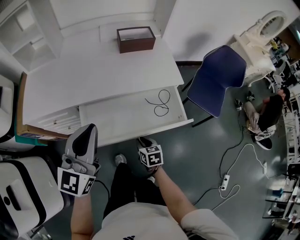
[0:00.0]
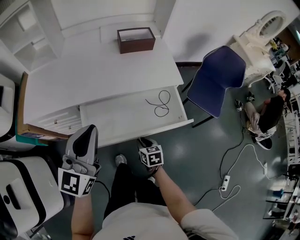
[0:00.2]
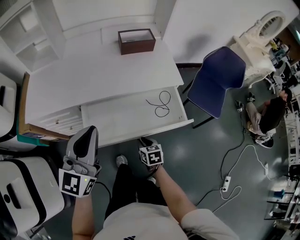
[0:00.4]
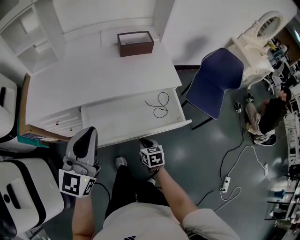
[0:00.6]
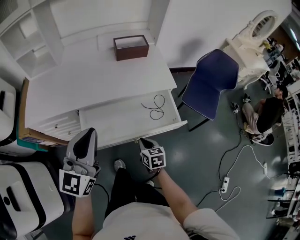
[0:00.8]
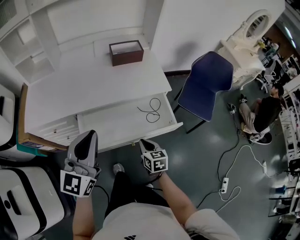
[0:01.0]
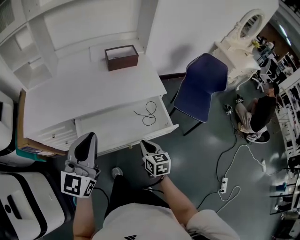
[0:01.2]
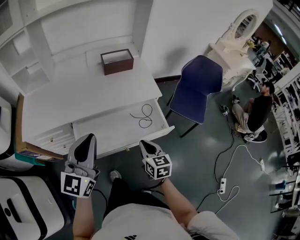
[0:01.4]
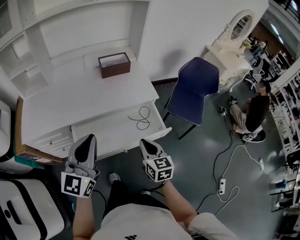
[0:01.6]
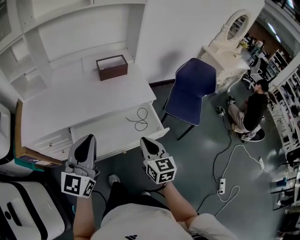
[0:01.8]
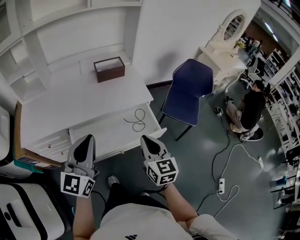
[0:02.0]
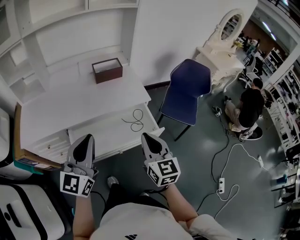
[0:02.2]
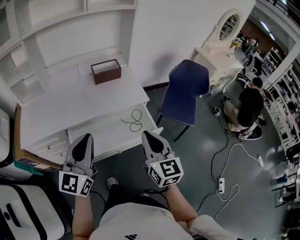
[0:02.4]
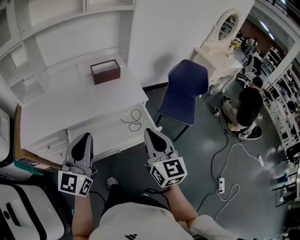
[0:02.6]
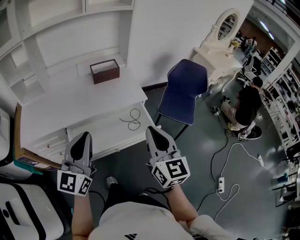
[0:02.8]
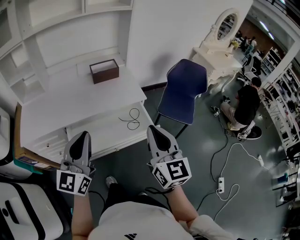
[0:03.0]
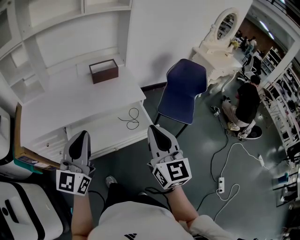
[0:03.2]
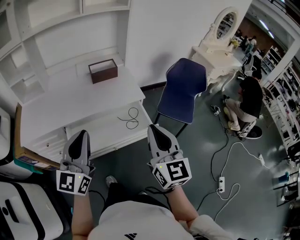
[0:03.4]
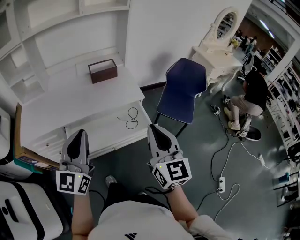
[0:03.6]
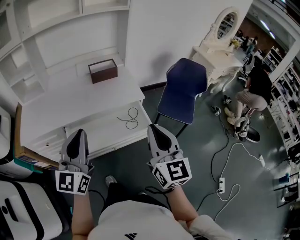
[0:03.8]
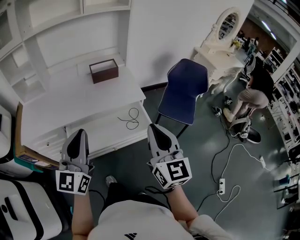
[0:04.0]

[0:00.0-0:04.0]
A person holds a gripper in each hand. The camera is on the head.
0:00.0 to 0:01.4: The right gripper is displaced upward by some 15 cm, and rotates some 20 degrees.
0:01.4 to 0:02.6: The left gripper ends up some 5 cm from where it was; the right gripper moves upward, roughly 20 cm, and swivels approximately 30 degrees.
0:02.6 to 0:04.0: The right gripper shifts by approximately 5 cm.

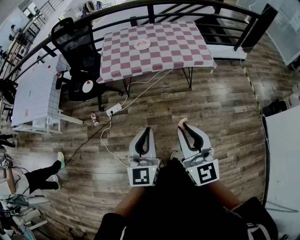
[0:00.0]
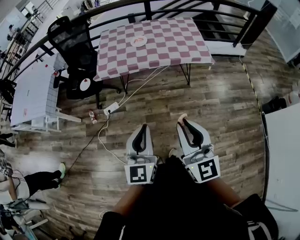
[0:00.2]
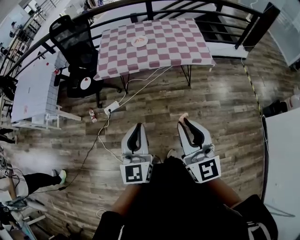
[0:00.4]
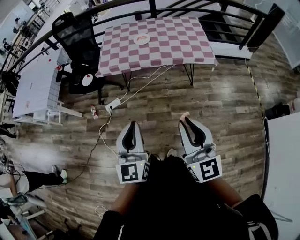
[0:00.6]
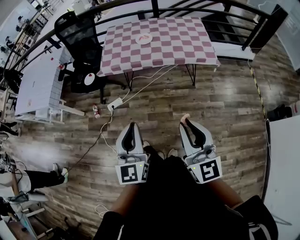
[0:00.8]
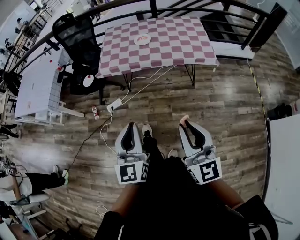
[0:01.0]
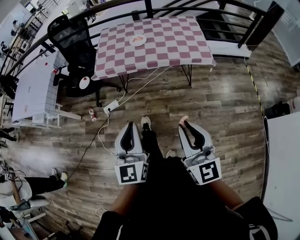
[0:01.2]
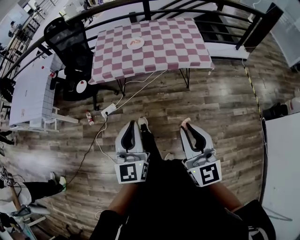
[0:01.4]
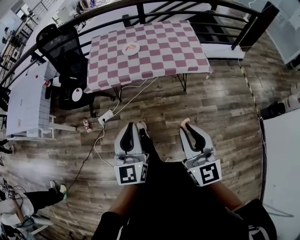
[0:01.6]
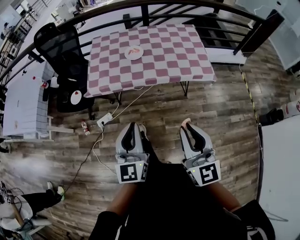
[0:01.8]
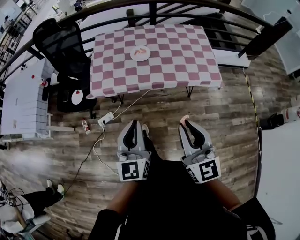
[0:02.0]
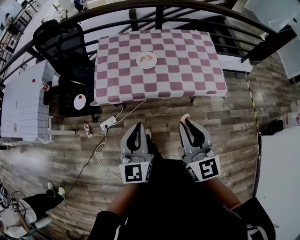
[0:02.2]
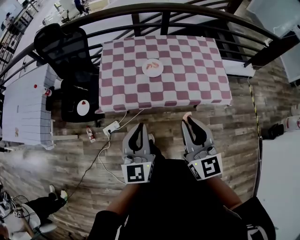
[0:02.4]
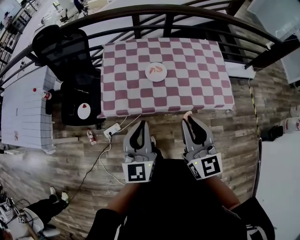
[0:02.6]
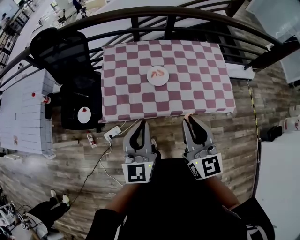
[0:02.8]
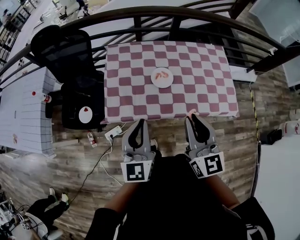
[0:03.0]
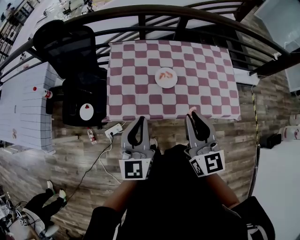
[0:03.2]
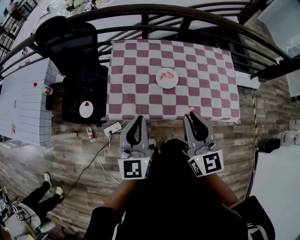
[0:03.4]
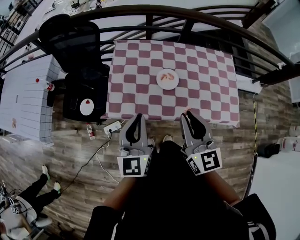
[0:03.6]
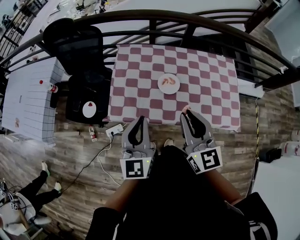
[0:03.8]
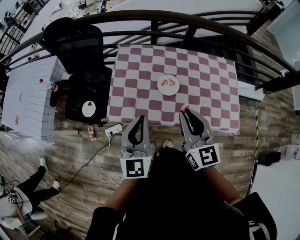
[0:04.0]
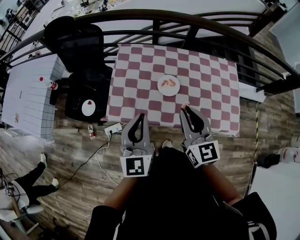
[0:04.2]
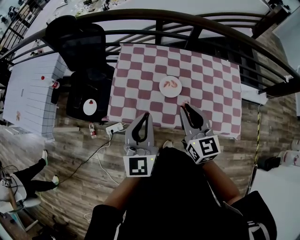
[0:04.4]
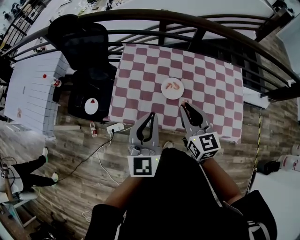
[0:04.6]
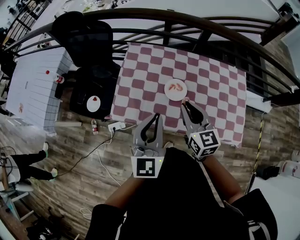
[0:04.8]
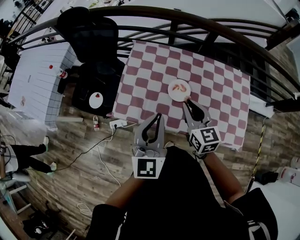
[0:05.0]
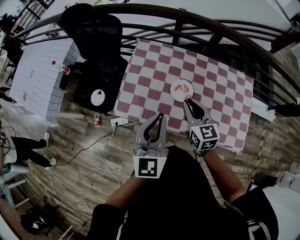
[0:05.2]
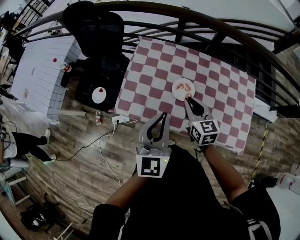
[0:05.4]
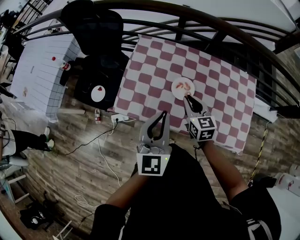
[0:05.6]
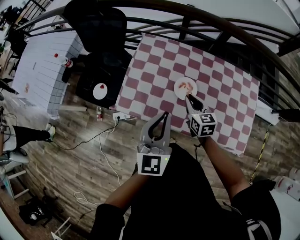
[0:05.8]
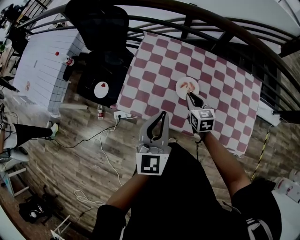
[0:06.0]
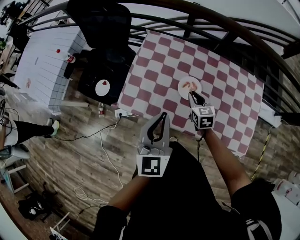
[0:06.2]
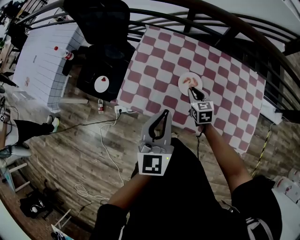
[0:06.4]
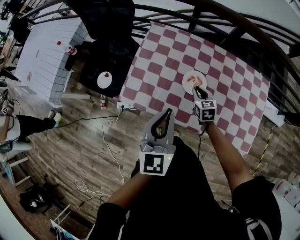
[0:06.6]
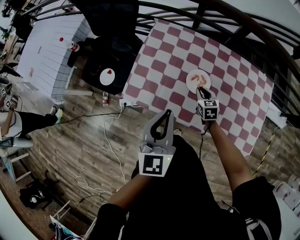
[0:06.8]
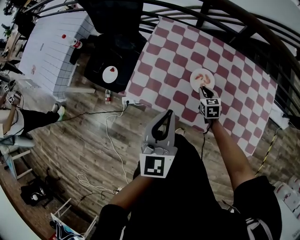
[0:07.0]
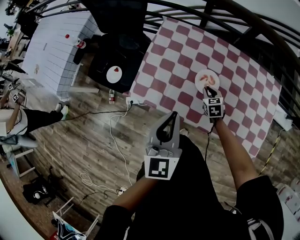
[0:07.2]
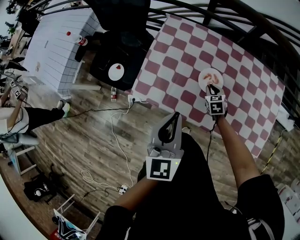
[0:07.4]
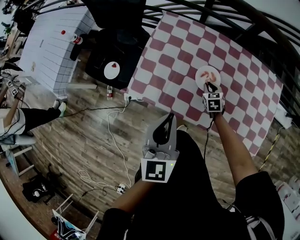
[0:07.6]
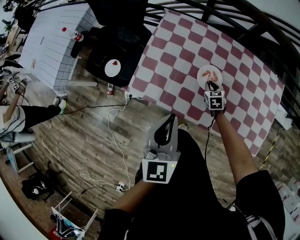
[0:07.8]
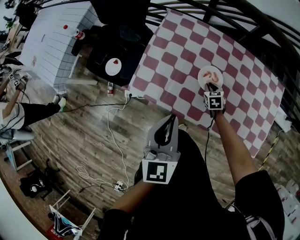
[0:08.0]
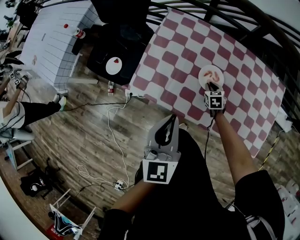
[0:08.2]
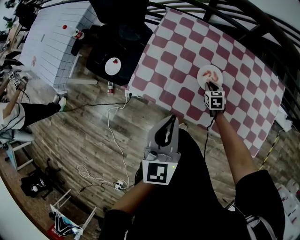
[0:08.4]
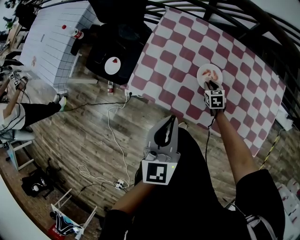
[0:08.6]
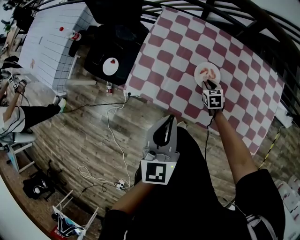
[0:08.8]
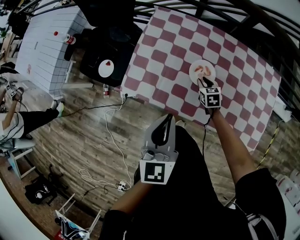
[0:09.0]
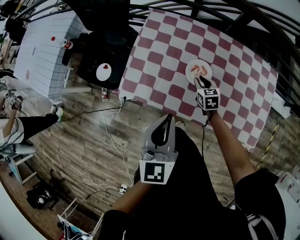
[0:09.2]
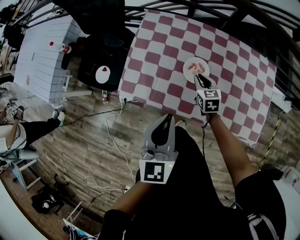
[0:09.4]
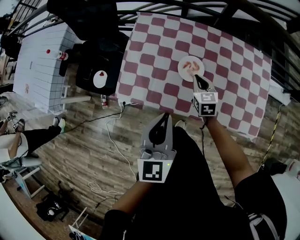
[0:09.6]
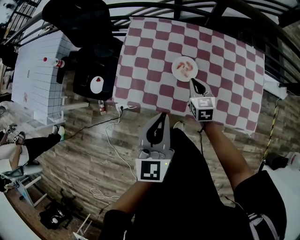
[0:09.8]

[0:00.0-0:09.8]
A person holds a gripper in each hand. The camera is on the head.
0:00.0 to 0:01.4: The right gripper is displaced to the right and forward by approximately 10 cm; the left gripper travels forward by approximately 10 cm.
0:01.4 to 0:02.8: The pair of grippers is taken forward, some 50 cm.
0:02.8 to 0:04.2: The left gripper heads forward, covering about 10 cm; the right gripper heads forward, covering approximately 10 cm.
0:04.2 to 0:05.6: The left gripper shifts some 5 cm to the right; the right gripper is displaced downward and forward by about 20 cm, and rotates about 20 degrees.
0:05.6 to 0:07.0: The right gripper shifts some 20 cm downward, and changes its angle by approximately 20 degrees; the left gripper ends up roughly 5 cm from where it was.
0:07.0 to 0:08.4: The right gripper moves downward, some 5 cm.
0:08.4 to 0:09.8: The right gripper goes approximately 15 cm upward, and swivels some 20 degrees, while the left gripper ends up approximately 5 cm from where it was.

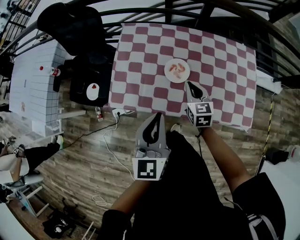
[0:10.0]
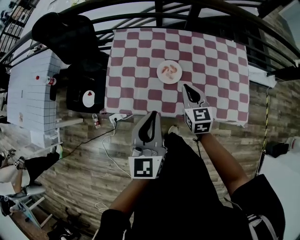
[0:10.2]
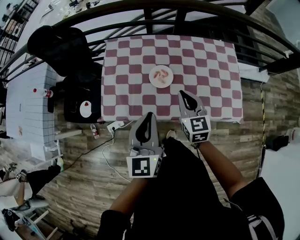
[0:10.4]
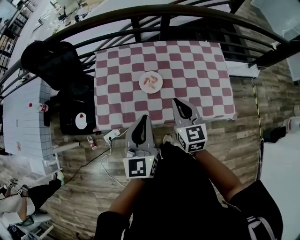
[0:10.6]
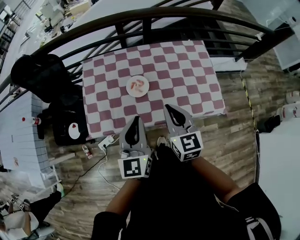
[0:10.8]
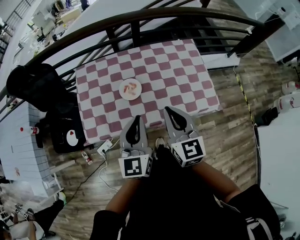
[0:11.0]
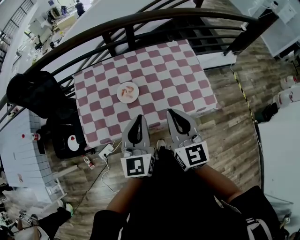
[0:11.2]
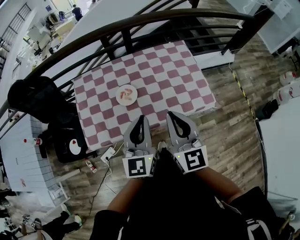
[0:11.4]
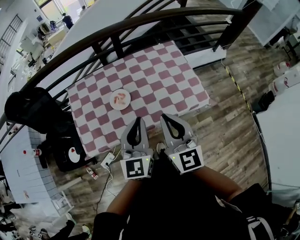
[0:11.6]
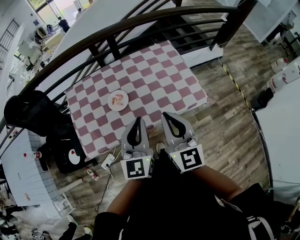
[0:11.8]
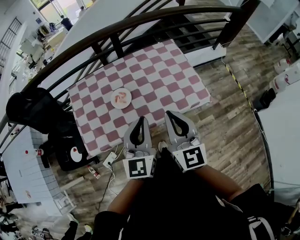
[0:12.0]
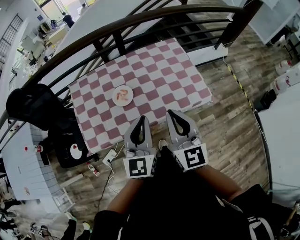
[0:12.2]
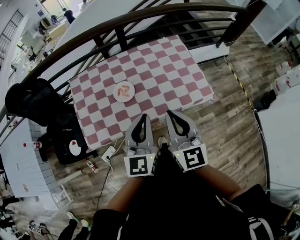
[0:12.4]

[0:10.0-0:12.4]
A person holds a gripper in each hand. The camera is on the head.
0:10.0 to 0:11.2: The right gripper moves upward, backward and to the right, some 30 cm, and rotates approximately 30 degrees. The left gripper shifts some 10 cm to the right, and rotates roughly 20 degrees.
0:11.2 to 0:12.4: The grippers make only small movements.

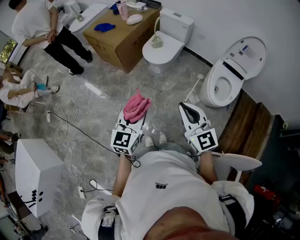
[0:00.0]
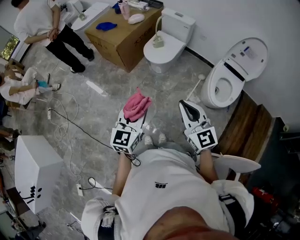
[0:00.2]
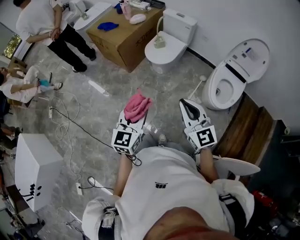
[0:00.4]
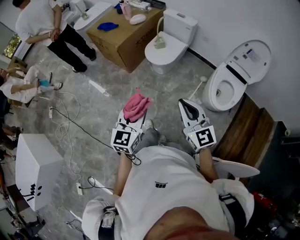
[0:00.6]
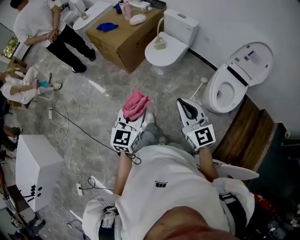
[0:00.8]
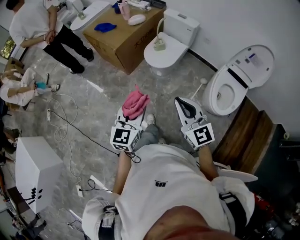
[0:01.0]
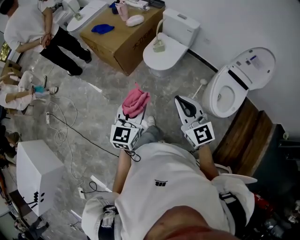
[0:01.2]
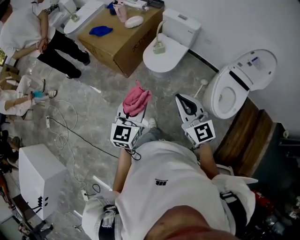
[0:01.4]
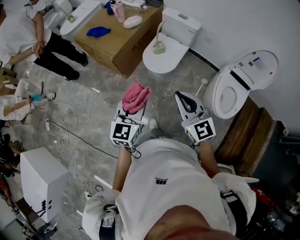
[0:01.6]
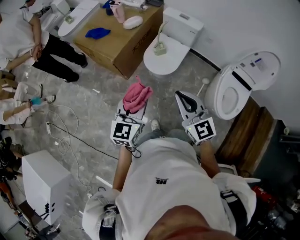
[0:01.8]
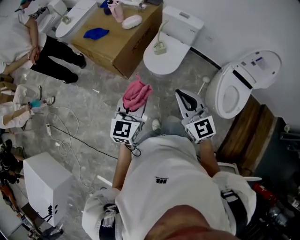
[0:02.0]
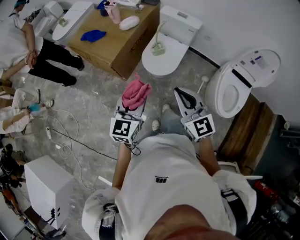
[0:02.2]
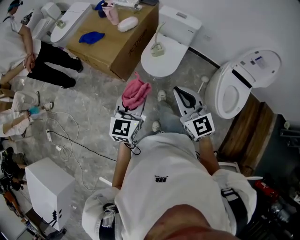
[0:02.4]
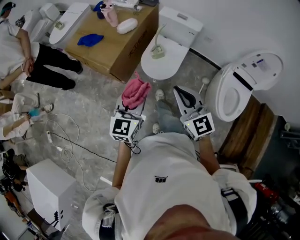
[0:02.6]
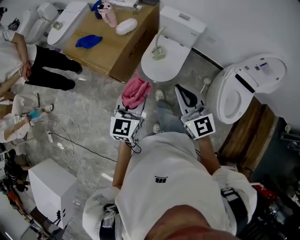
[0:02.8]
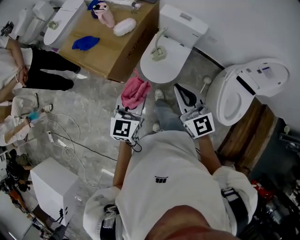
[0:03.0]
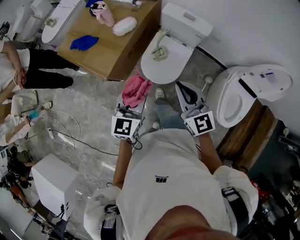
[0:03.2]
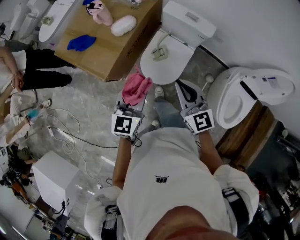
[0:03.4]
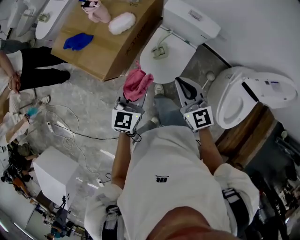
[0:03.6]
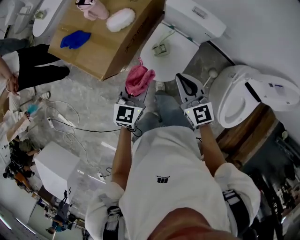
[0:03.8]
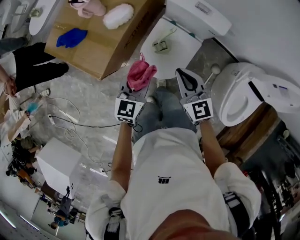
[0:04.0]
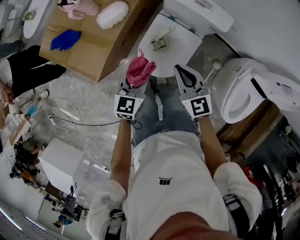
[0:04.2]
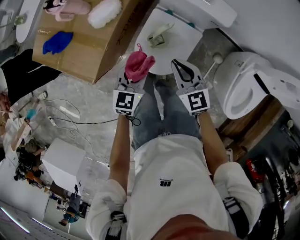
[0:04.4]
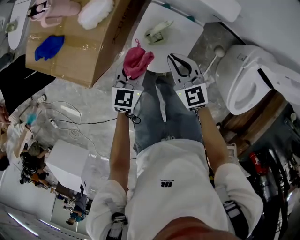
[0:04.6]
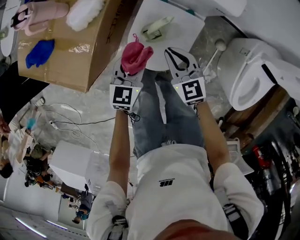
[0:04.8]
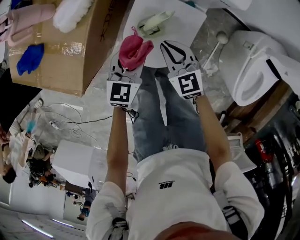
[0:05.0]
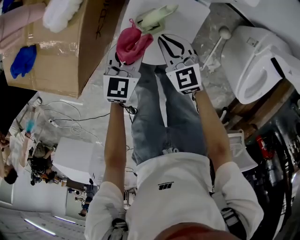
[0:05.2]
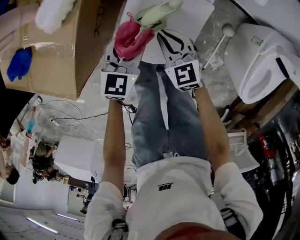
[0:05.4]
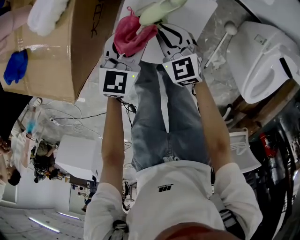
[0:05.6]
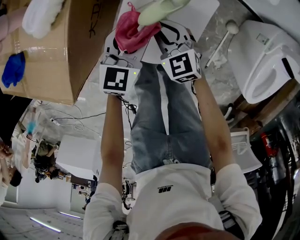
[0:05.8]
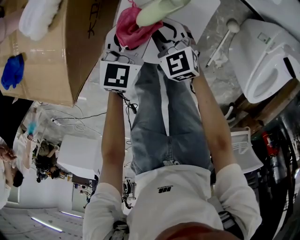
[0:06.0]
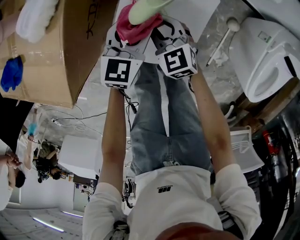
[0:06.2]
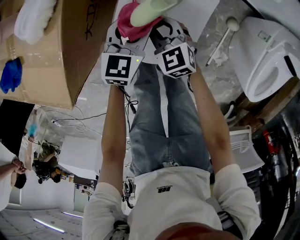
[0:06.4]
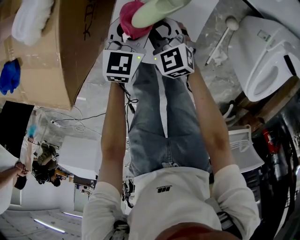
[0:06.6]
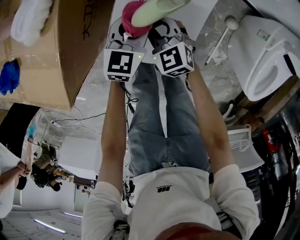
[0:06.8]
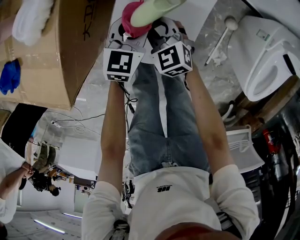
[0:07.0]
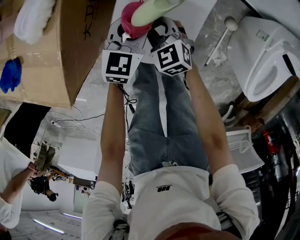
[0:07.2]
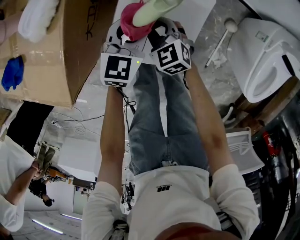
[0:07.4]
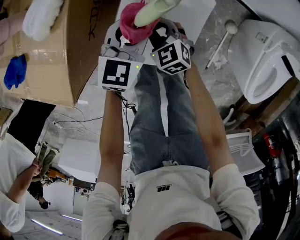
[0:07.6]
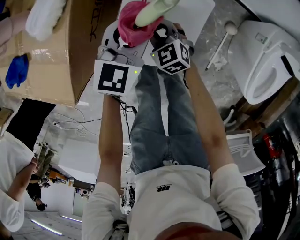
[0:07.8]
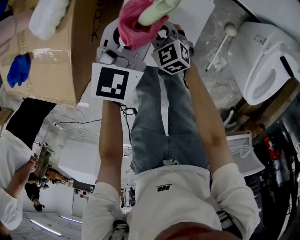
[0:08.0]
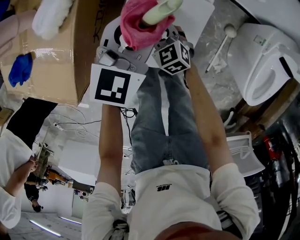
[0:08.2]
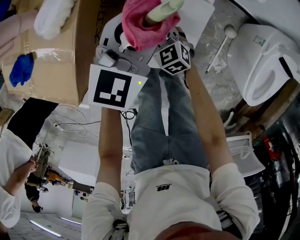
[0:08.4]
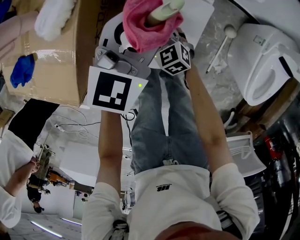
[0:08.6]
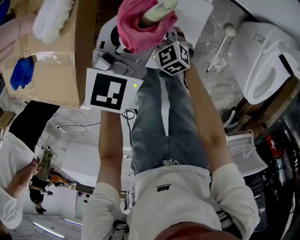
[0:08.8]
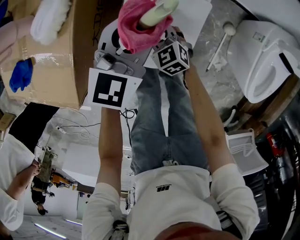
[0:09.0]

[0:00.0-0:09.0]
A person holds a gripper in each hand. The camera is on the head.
0:00.0 to 0:01.6: Both grippers travel together forward, approximately 25 cm.
0:01.6 to 0:03.0: Both grippers move forward, about 25 cm.
0:03.0 to 0:04.4: The right gripper is displaced downward and forward by approximately 35 cm, and turns by approximately 20 degrees, while the left gripper shifts some 35 cm forward and downward.
0:04.4 to 0:06.0: The two grippers go approximately 25 cm downward.
0:06.0 to 0:07.6: The grippers stay close to where they were, moving slightly.
0:07.6 to 0:09.0: The left gripper is displaced upward by about 10 cm.
